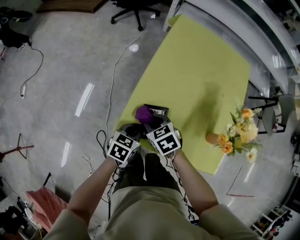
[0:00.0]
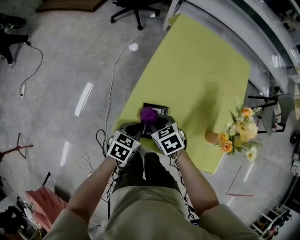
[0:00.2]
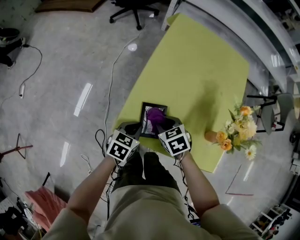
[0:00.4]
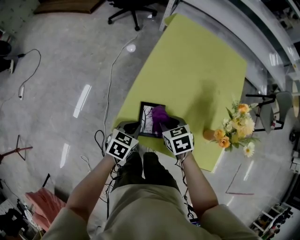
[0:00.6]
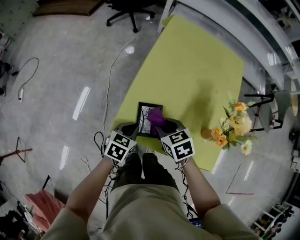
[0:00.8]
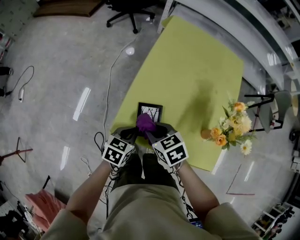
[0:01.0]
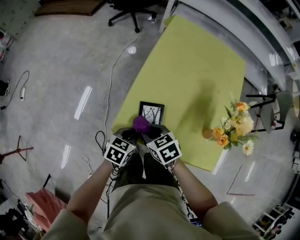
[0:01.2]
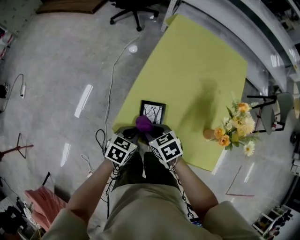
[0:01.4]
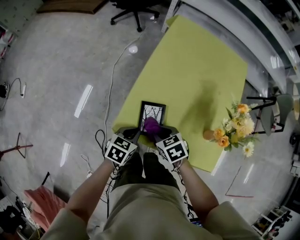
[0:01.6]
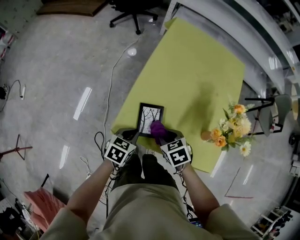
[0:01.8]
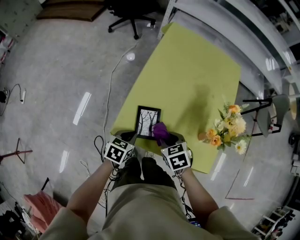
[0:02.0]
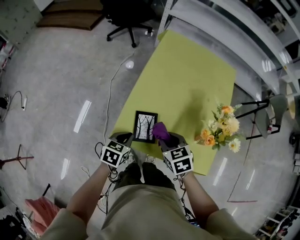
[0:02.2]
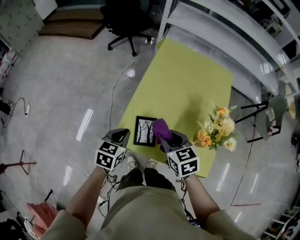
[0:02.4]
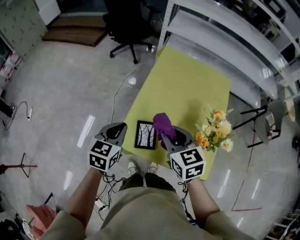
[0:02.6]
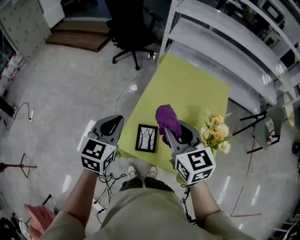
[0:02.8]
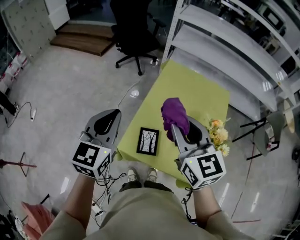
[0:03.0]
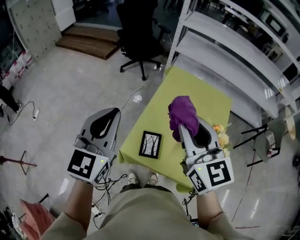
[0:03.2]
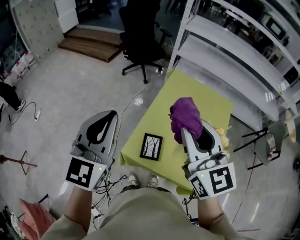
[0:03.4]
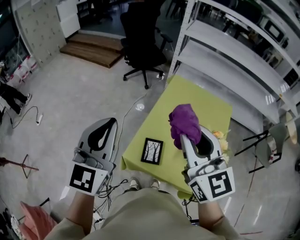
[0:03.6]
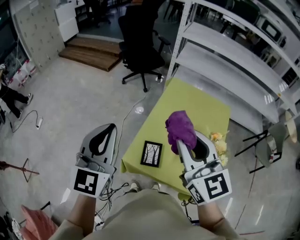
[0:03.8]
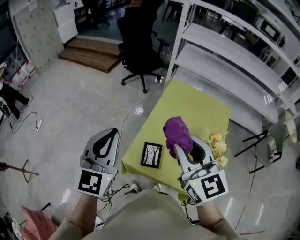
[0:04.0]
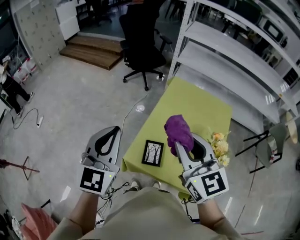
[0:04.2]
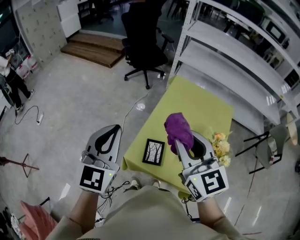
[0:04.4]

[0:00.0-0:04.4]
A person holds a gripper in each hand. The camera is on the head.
0:00.0 to 0:01.4: The right gripper travels backward by roughly 5 cm, and moves about 10 cm to the right and comes back.
0:01.4 to 0:03.0: Both grippers move upward, roughly 40 cm. The left gripper tilts its fingers about 40 degrees upward, while the right gripper points its fingers some 40 degrees further upward.
0:03.0 to 0:04.4: The left gripper goes roughly 5 cm upward.

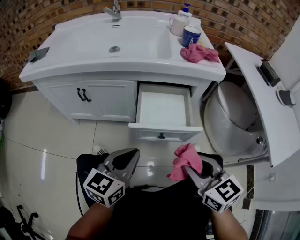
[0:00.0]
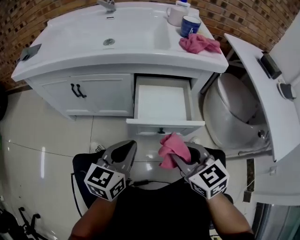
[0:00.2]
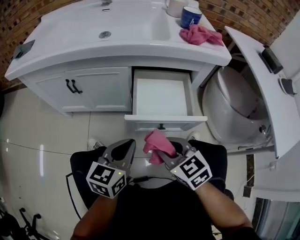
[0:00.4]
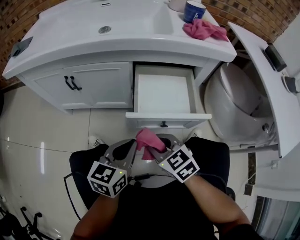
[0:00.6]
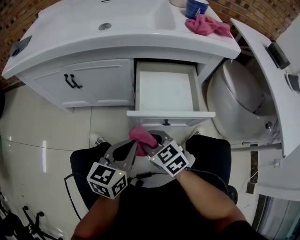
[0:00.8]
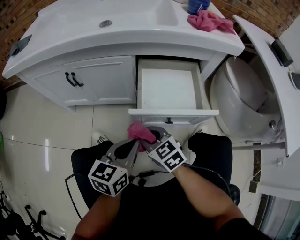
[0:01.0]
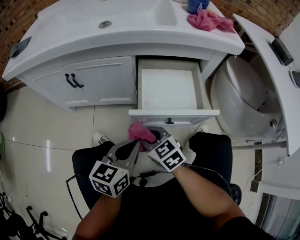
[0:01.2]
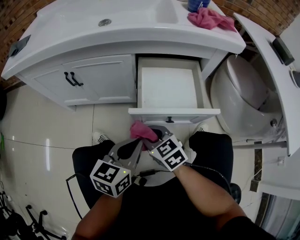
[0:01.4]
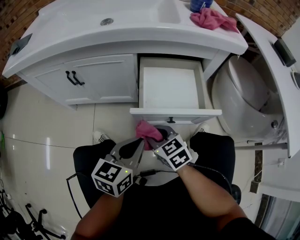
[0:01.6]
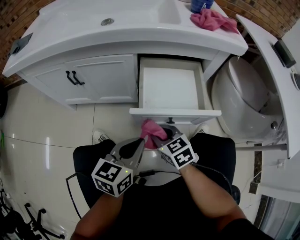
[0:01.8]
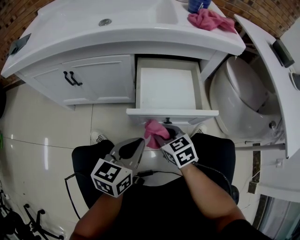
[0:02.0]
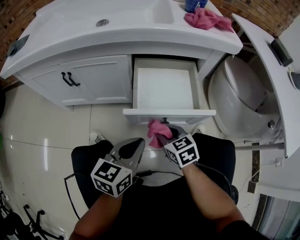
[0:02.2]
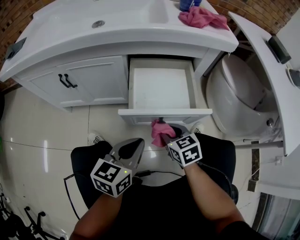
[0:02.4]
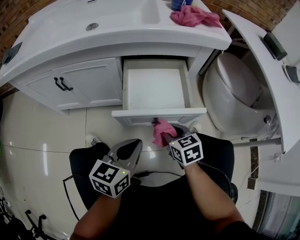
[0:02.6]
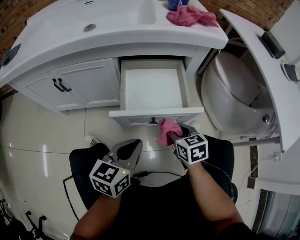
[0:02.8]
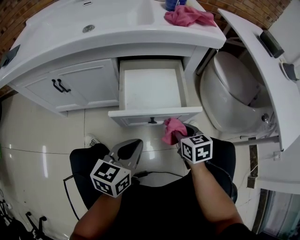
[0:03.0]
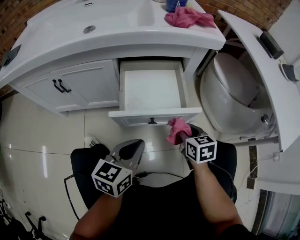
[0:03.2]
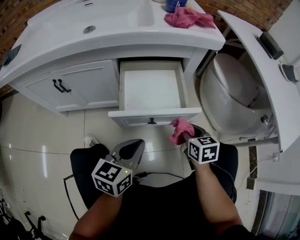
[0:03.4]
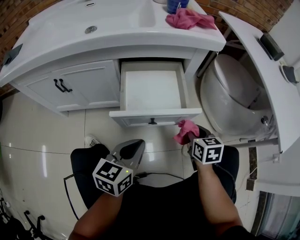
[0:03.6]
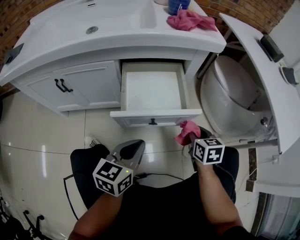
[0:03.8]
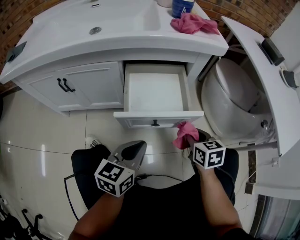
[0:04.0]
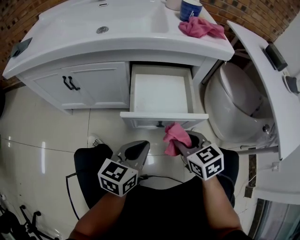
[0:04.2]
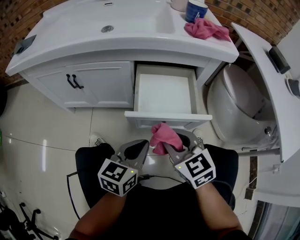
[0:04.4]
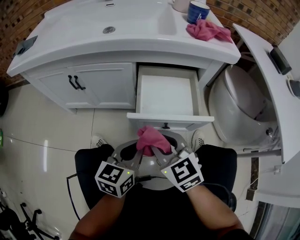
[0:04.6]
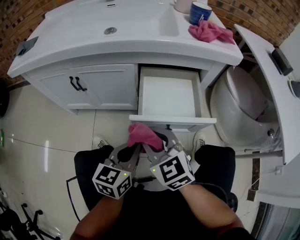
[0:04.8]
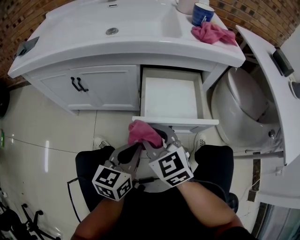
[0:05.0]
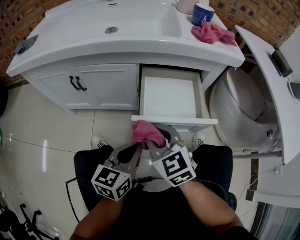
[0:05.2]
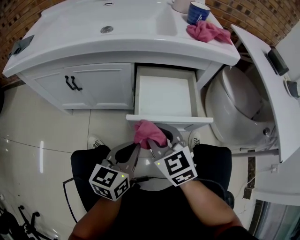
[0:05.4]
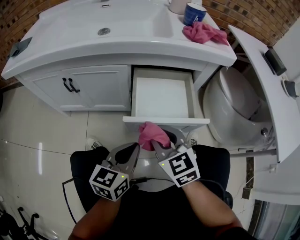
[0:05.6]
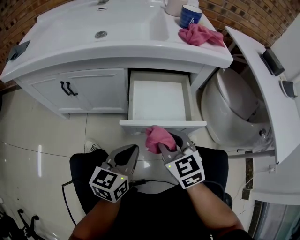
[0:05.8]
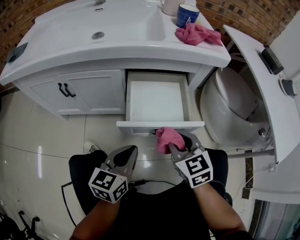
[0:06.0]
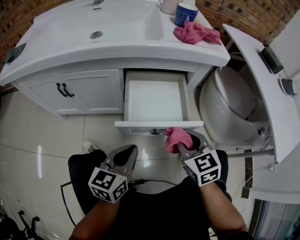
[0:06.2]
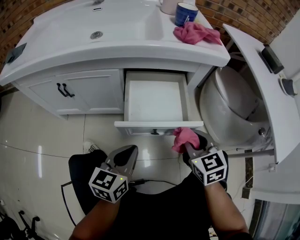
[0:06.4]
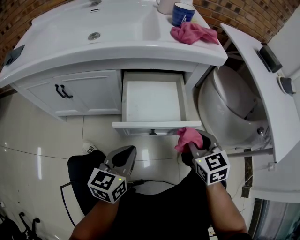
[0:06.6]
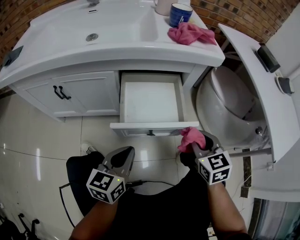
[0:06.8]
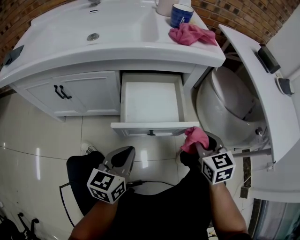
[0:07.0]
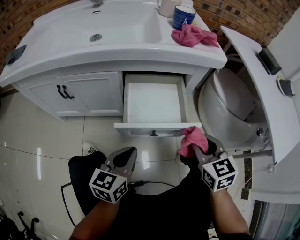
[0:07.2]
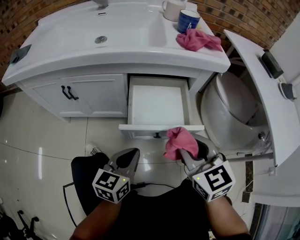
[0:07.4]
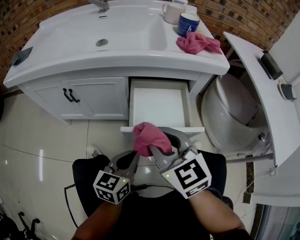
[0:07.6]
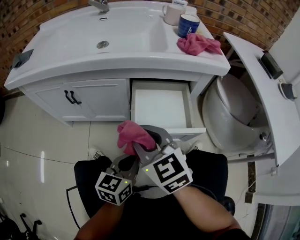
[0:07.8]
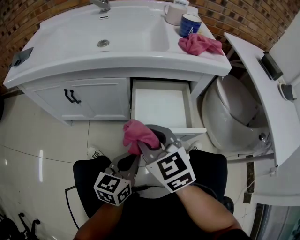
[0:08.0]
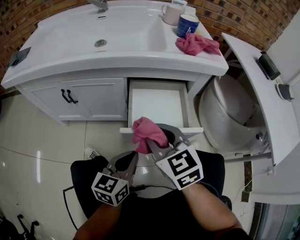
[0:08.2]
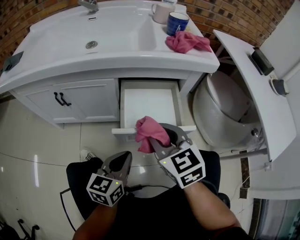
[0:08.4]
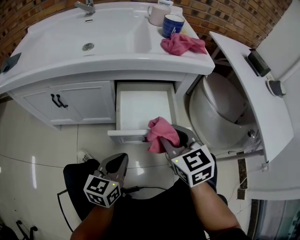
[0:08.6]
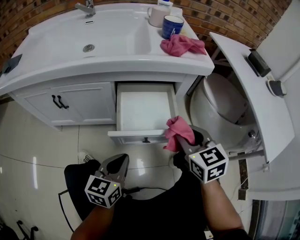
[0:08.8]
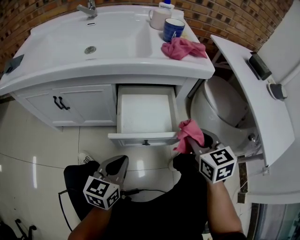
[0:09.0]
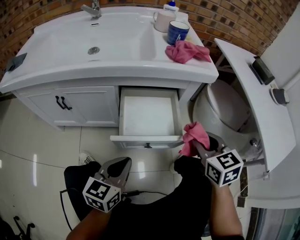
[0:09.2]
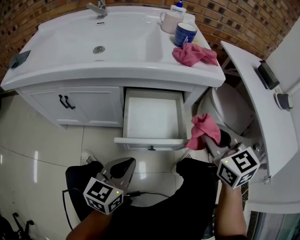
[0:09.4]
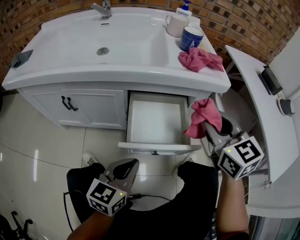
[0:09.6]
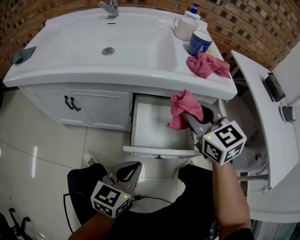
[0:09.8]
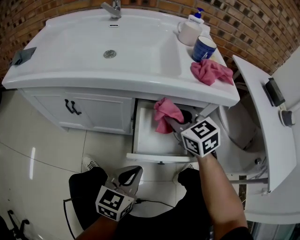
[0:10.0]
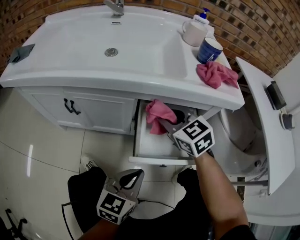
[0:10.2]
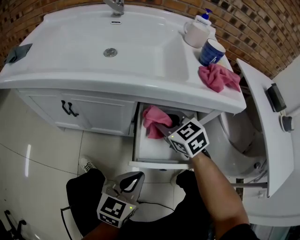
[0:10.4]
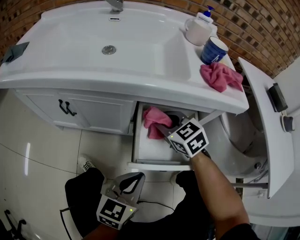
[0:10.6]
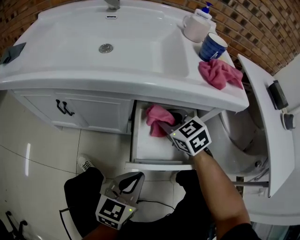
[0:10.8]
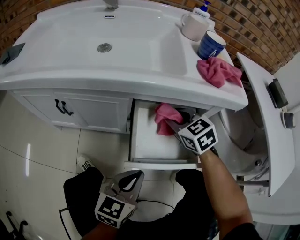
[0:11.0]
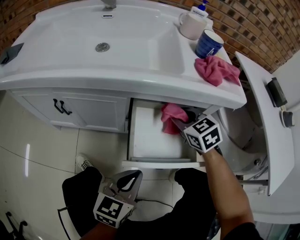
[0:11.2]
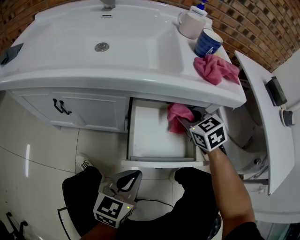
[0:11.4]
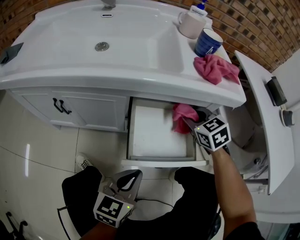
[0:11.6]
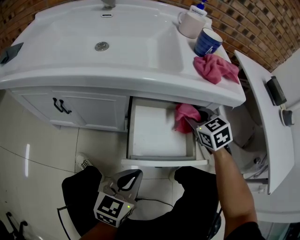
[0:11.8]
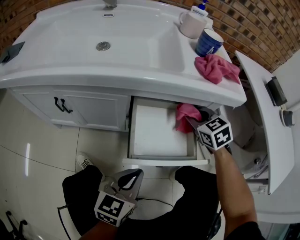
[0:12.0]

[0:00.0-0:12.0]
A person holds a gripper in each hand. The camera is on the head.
0:00.0 to 0:01.6: The left gripper heads downward, covering roughly 10 cm. The right gripper heads downward, to the left and forward, covering approximately 30 cm.
0:01.6 to 0:03.0: The left gripper shifts some 5 cm to the right. Meanwhile the right gripper is displaced to the right by roughly 20 cm, and swivels roughly 30 degrees.
0:03.0 to 0:04.4: The right gripper goes some 15 cm upward, to the left and backward, and changes its angle by about 30 degrees.
0:04.4 to 0:06.0: The right gripper goes to the left and returns, some 10 cm each way.
0:06.0 to 0:07.6: The right gripper moves upward and to the left, about 15 cm.
0:07.6 to 0:09.0: The right gripper heads to the right, covering roughly 20 cm, and swivels approximately 20 degrees.
0:09.0 to 0:10.4: The right gripper shifts about 25 cm to the left and forward, and changes its angle by roughly 30 degrees.
0:10.4 to 0:12.0: The right gripper goes some 15 cm to the right.

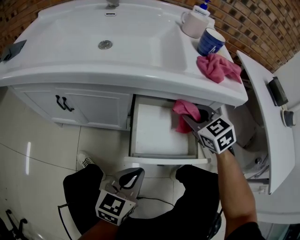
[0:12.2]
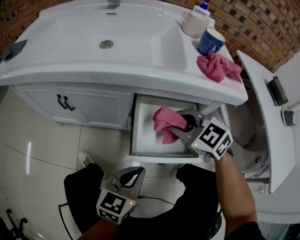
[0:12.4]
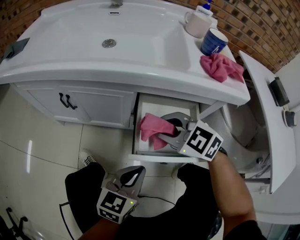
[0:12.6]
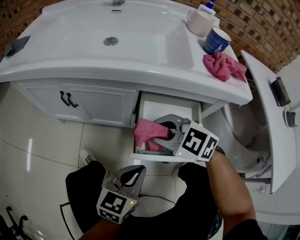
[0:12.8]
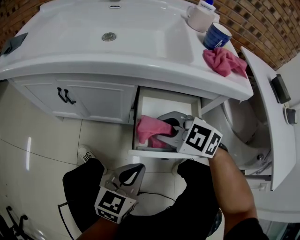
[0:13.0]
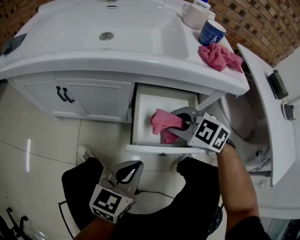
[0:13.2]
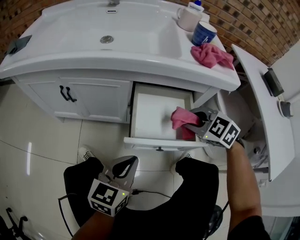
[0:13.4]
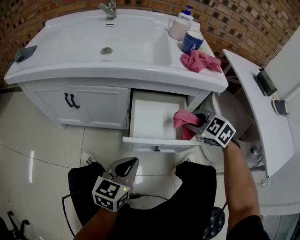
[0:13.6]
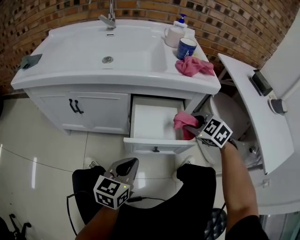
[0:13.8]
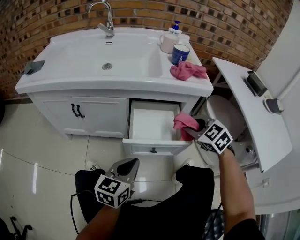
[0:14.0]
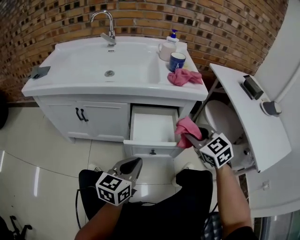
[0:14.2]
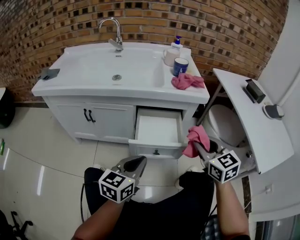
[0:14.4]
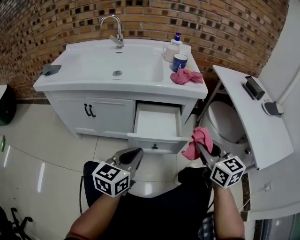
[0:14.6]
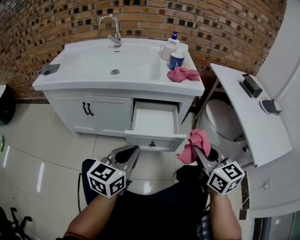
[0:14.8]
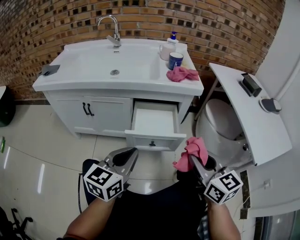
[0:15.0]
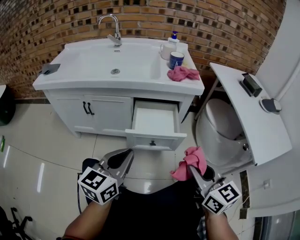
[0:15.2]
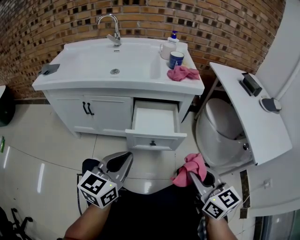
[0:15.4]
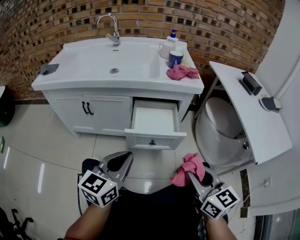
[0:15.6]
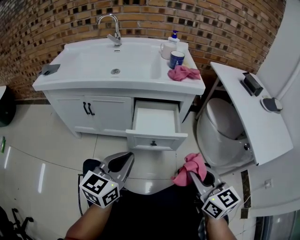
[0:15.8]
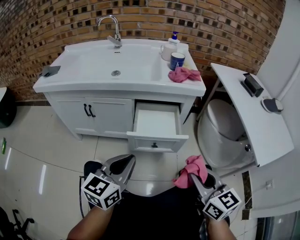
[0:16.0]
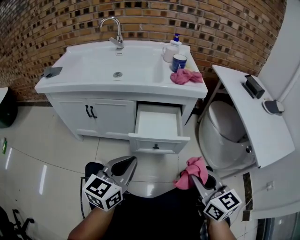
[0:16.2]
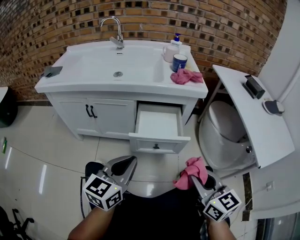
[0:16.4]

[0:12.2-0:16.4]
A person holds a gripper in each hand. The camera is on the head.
0:12.2 to 0:13.6: The right gripper travels backward by roughly 10 cm, and moves approximately 15 cm to the left and comes back.
0:13.6 to 0:15.0: The left gripper goes approximately 15 cm upward and backward; the right gripper travels backward and upward by approximately 30 cm, and tips its fingers upward by about 40 degrees.
0:15.0 to 0:16.4: The right gripper changes place by approximately 5 cm.

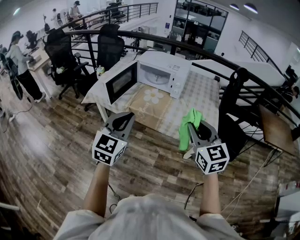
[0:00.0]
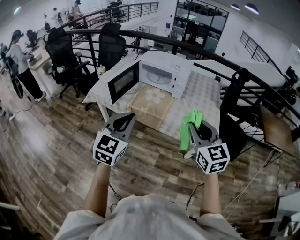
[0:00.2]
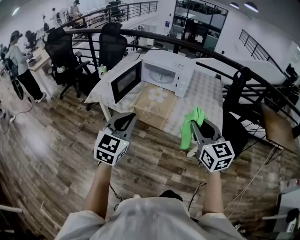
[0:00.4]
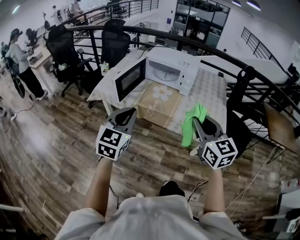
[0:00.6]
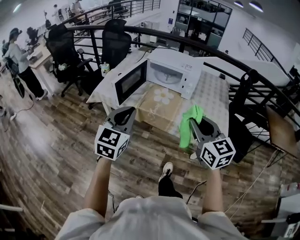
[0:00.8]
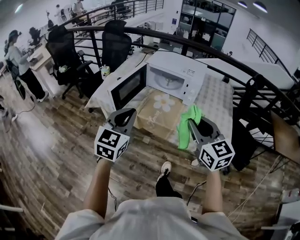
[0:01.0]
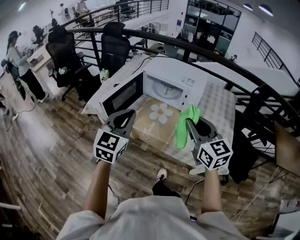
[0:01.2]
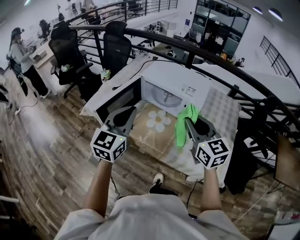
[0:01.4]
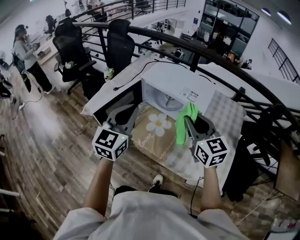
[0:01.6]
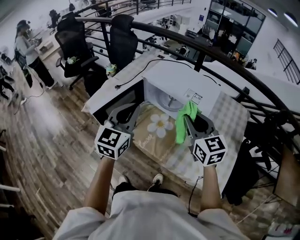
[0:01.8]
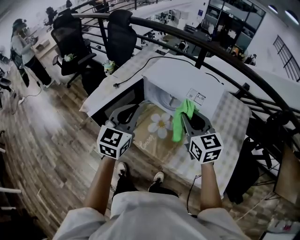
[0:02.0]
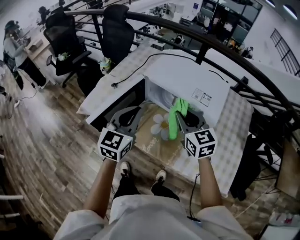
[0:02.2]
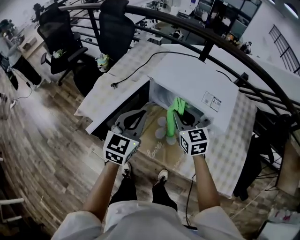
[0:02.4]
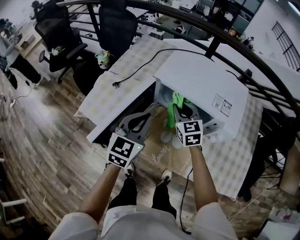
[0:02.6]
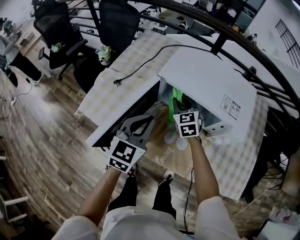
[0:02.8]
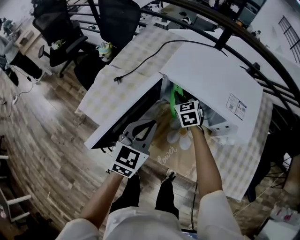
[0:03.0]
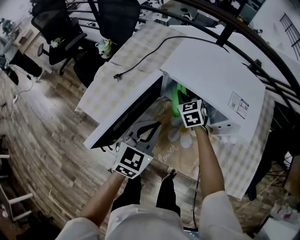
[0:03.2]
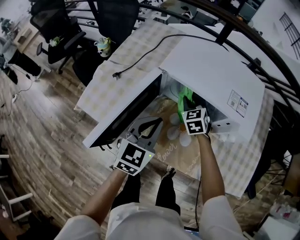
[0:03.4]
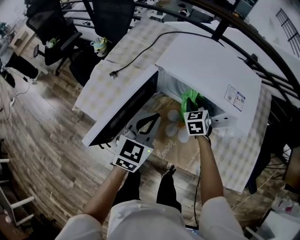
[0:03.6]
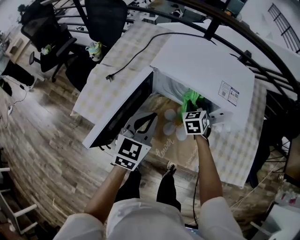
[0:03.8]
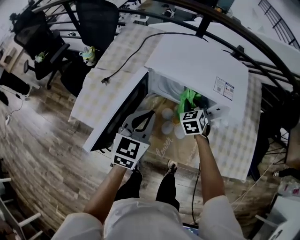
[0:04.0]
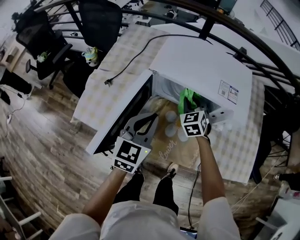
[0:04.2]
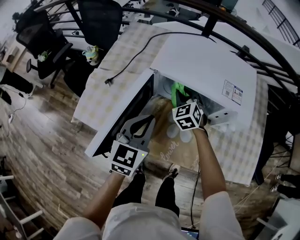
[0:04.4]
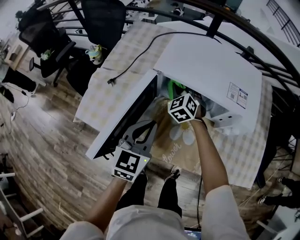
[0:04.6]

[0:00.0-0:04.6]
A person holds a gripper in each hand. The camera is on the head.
0:00.0 to 0:01.6: The grippers both shift forward by approximately 40 cm.
0:01.6 to 0:03.0: The left gripper shifts some 25 cm downward and forward, and turns by approximately 20 degrees. The right gripper heads forward, downward and to the left, covering approximately 50 cm, and turns by roughly 30 degrees.
0:03.0 to 0:04.6: The right gripper moves roughly 10 cm to the right and comes back, and turns by about 20 degrees.
